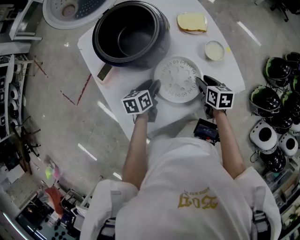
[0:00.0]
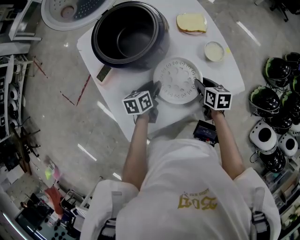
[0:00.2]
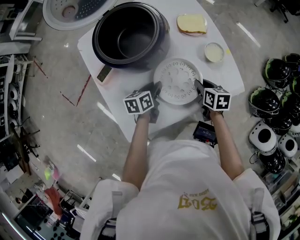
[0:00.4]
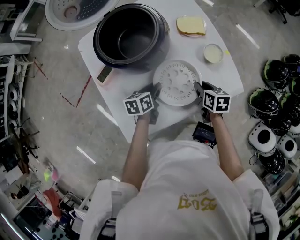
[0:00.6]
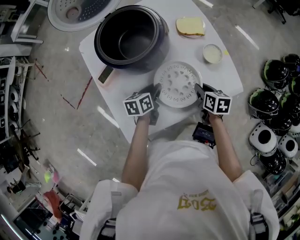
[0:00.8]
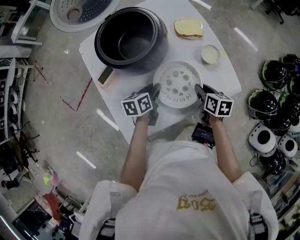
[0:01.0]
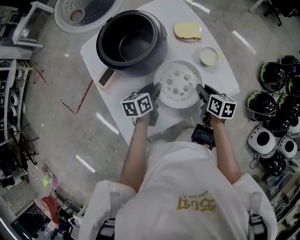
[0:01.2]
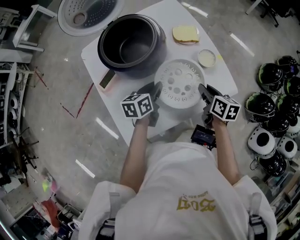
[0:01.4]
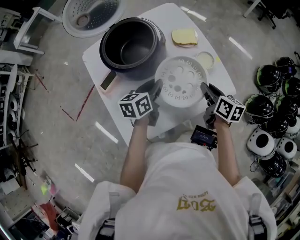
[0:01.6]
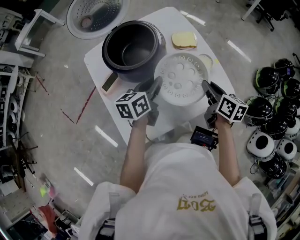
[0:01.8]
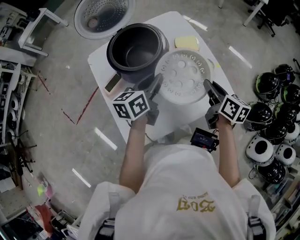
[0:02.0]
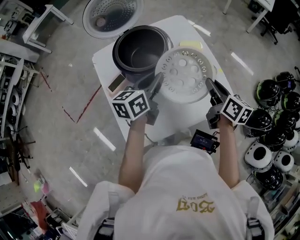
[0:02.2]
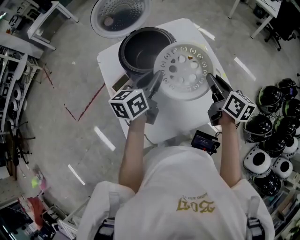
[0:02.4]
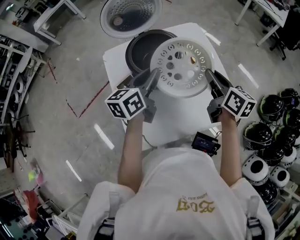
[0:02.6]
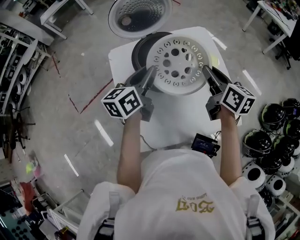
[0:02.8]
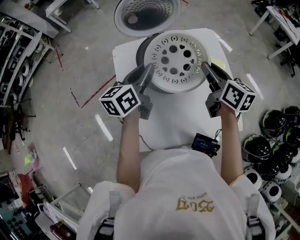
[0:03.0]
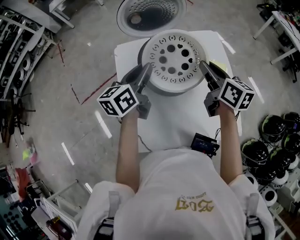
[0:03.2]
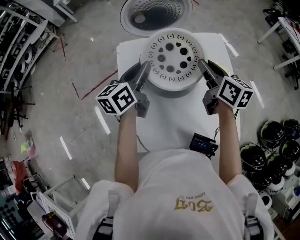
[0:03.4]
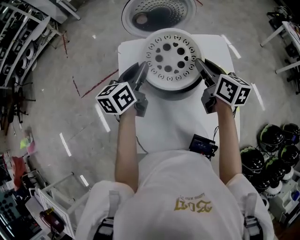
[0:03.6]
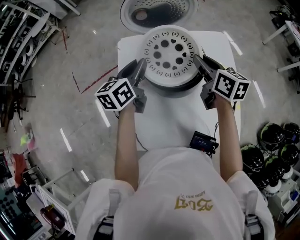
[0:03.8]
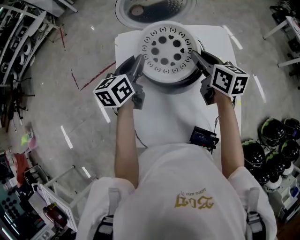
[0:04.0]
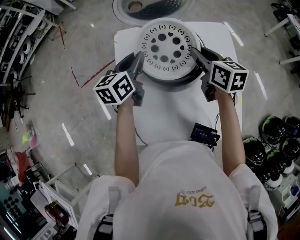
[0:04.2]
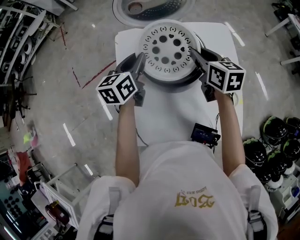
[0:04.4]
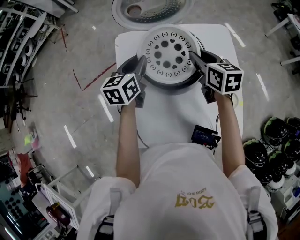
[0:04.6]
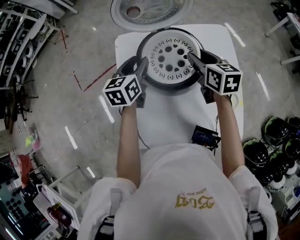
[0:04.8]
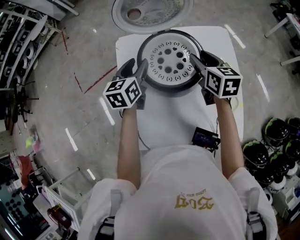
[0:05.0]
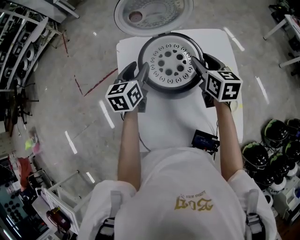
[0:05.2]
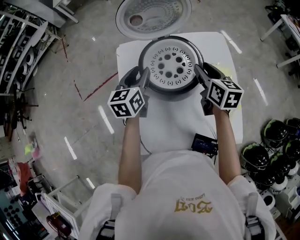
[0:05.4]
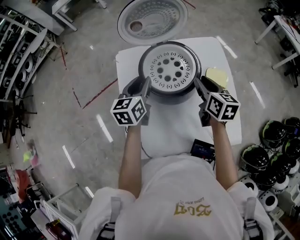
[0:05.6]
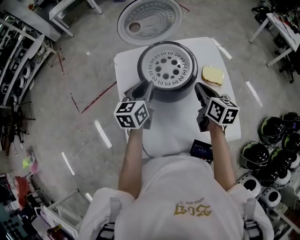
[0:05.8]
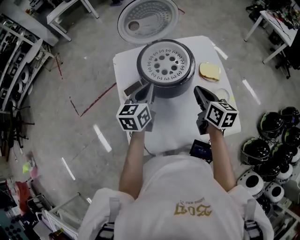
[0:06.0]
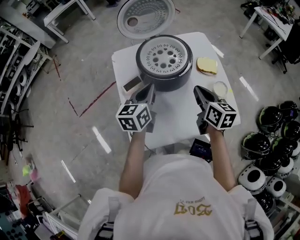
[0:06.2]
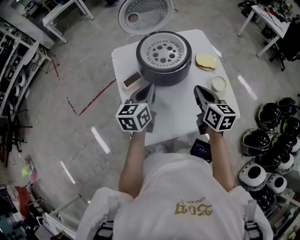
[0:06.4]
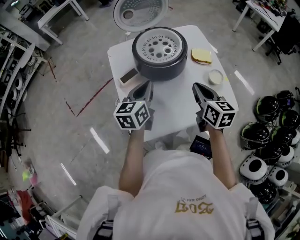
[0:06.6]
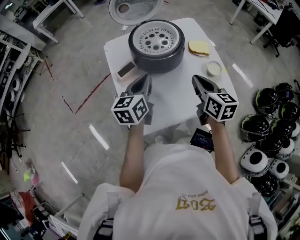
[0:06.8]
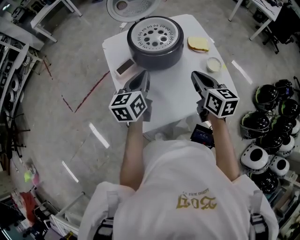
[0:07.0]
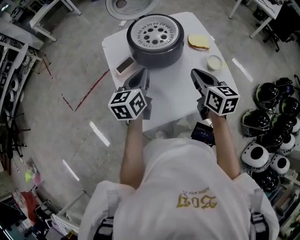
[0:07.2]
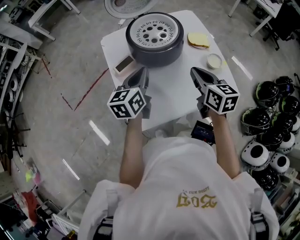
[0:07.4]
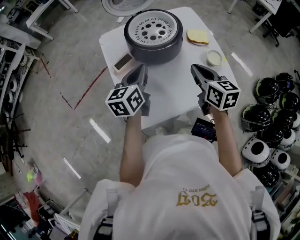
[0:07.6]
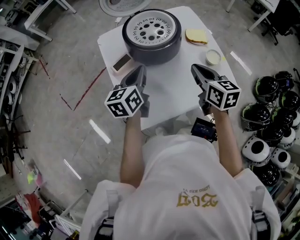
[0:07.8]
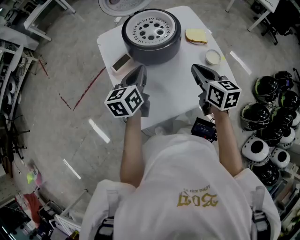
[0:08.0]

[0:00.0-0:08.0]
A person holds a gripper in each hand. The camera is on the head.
0:00.0 to 0:01.6: The grippers both shift upward by about 10 cm. The right gripper changes its angle by roughly 20 degrees. Meanwhile the left gripper closes.
0:01.6 to 0:03.2: The left gripper shifts some 20 cm upward, to the left and forward, and turns by approximately 30 degrees; the right gripper moves forward, upward and to the left, about 25 cm, and changes its angle by approximately 30 degrees.
0:03.2 to 0:04.8: The right gripper moves forward and downward, some 10 cm, changes its angle by approximately 20 degrees, and opens, while the left gripper is displaced downward and forward by roughly 10 cm, rotates about 20 degrees, and opens.
0:04.8 to 0:06.4: The grippers both shift backward by some 20 cm. The left gripper closes. The right gripper closes.
0:06.4 to 0:08.0: The grippers make only small movements.

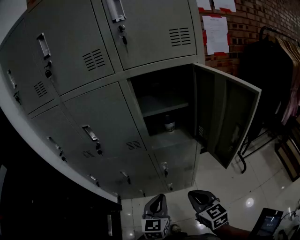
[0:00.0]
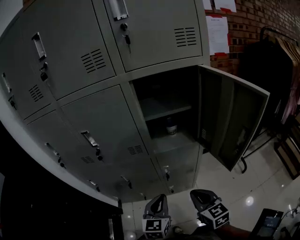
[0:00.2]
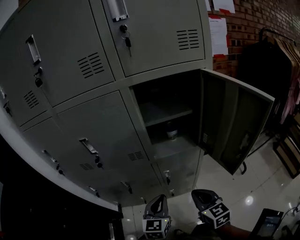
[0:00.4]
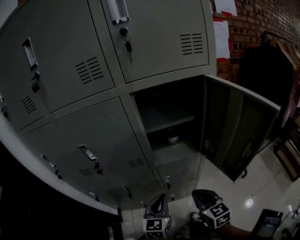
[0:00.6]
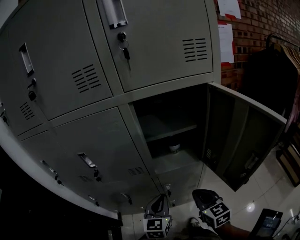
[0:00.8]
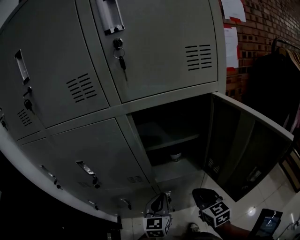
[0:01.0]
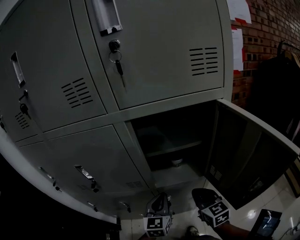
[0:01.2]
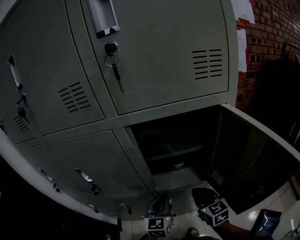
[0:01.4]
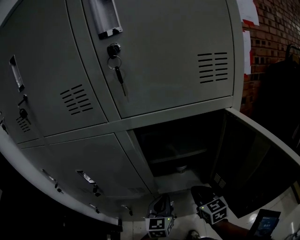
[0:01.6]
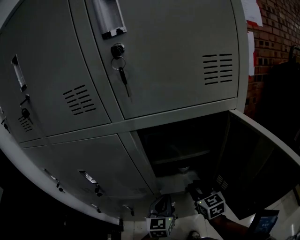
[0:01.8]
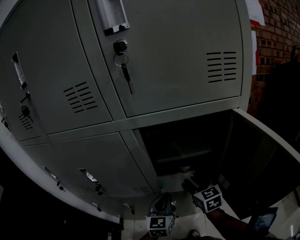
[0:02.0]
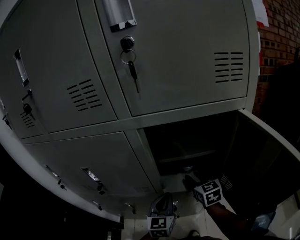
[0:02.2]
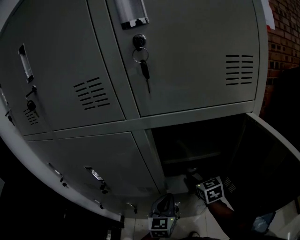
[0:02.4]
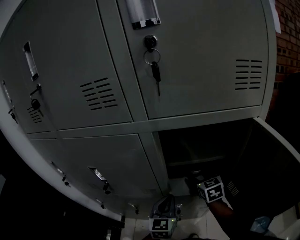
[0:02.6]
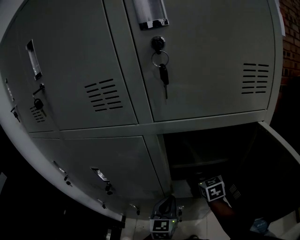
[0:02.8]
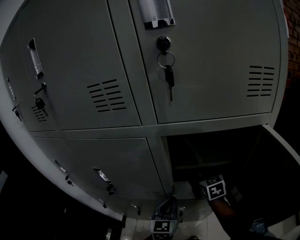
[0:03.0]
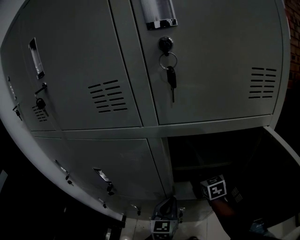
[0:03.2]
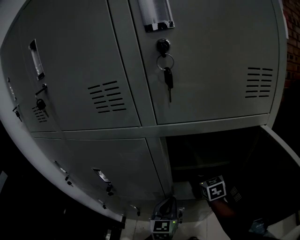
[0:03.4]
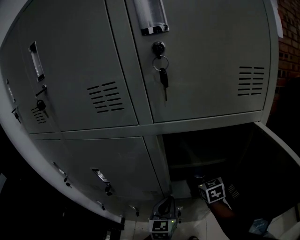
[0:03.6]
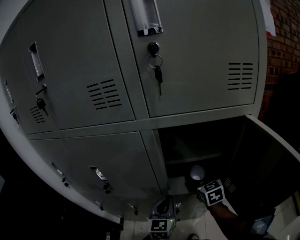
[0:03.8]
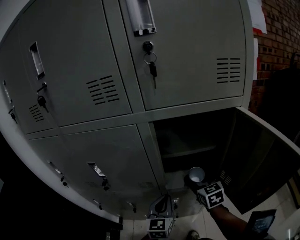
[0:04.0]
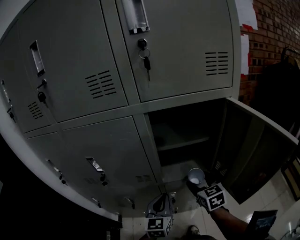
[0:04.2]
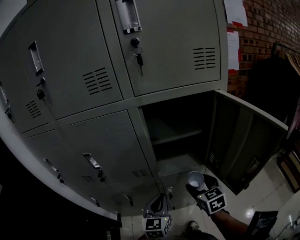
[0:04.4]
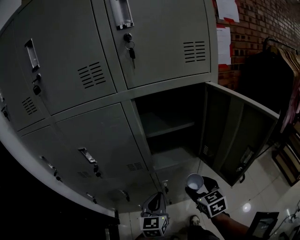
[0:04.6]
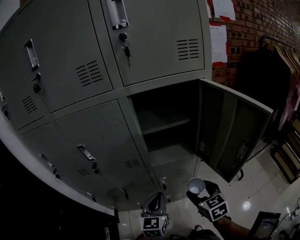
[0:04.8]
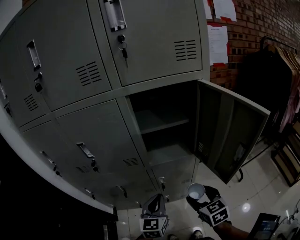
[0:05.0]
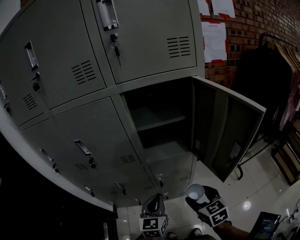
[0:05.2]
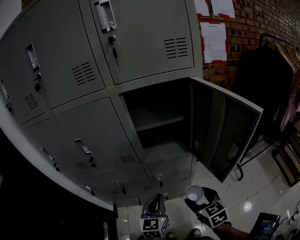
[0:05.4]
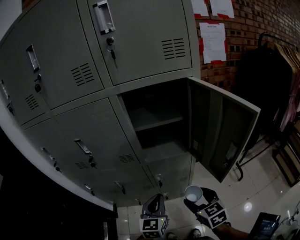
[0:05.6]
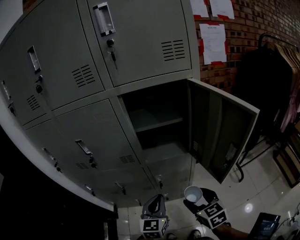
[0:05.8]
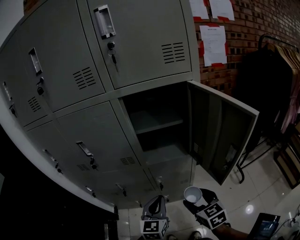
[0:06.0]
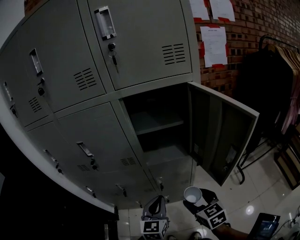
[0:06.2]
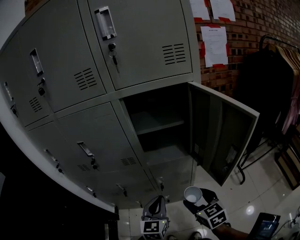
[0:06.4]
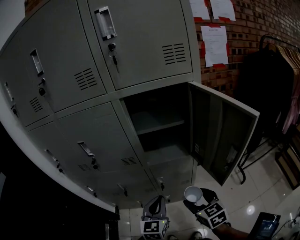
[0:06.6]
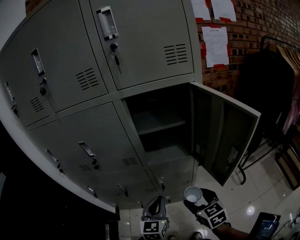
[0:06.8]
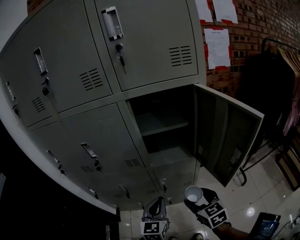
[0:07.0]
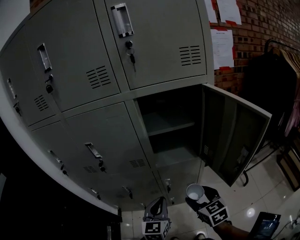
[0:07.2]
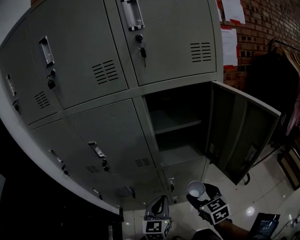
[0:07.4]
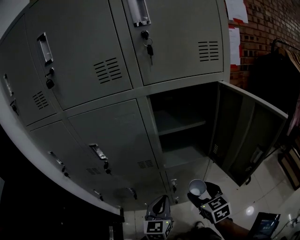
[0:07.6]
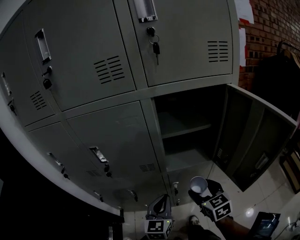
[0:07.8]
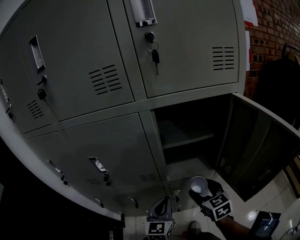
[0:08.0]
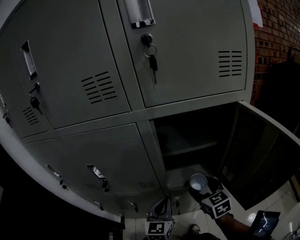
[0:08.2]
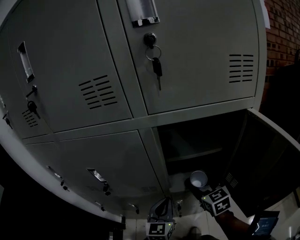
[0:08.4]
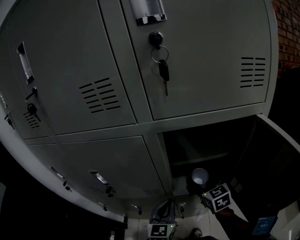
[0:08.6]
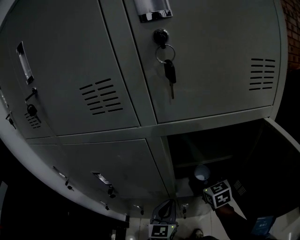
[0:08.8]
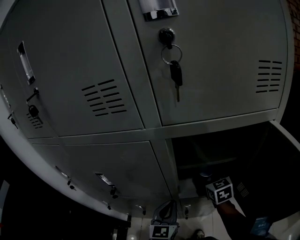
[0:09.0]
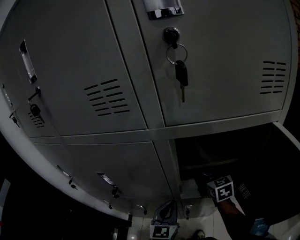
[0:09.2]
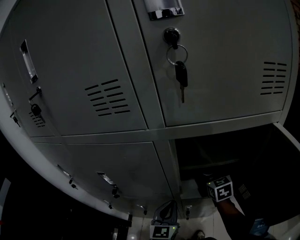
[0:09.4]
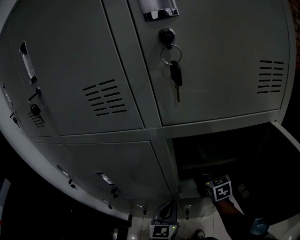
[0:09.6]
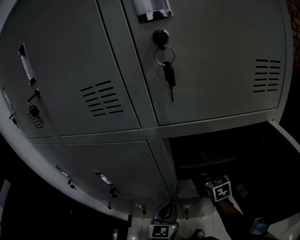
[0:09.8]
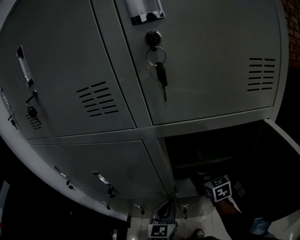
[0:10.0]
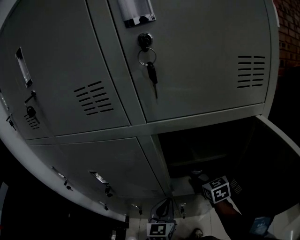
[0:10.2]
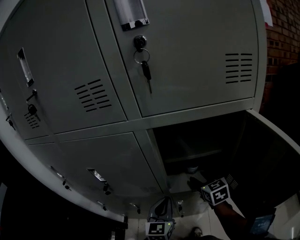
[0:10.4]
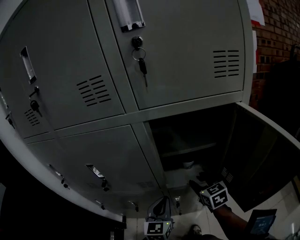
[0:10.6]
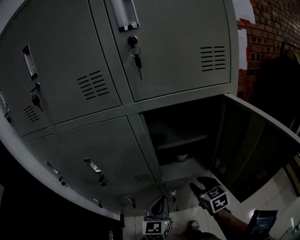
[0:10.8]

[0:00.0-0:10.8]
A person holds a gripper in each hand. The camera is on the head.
0:00.0 to 0:01.6: Both grippers move forward, about 25 cm.
0:01.6 to 0:03.0: The right gripper heads forward, covering approximately 15 cm, and opens up; the left gripper changes place by about 5 cm.
0:03.0 to 0:04.6: The left gripper travels backward by about 15 cm, while the right gripper heads backward, covering roughly 30 cm.
0:04.6 to 0:06.2: Both grippers travel together backward, some 10 cm.
0:06.2 to 0:07.8: The grippers both shift forward and to the left by roughly 10 cm.
0:07.8 to 0:09.2: The left gripper goes some 15 cm forward, while the right gripper heads forward, covering roughly 25 cm.
0:09.2 to 0:10.8: The left gripper heads backward, covering some 10 cm. Meanwhile the right gripper goes roughly 20 cm backward, and closes up.

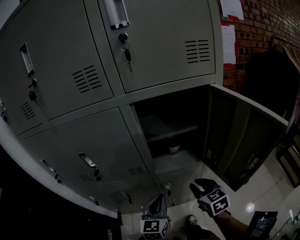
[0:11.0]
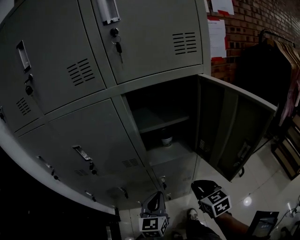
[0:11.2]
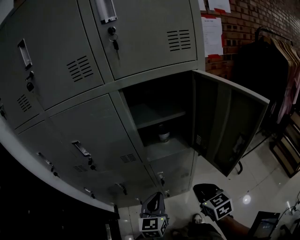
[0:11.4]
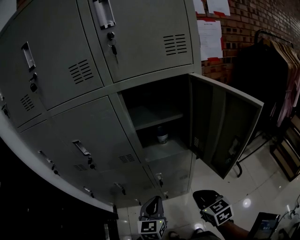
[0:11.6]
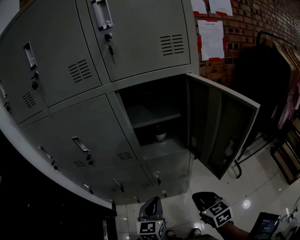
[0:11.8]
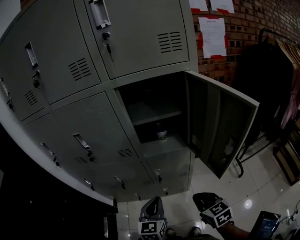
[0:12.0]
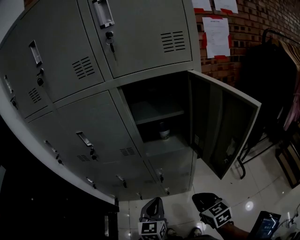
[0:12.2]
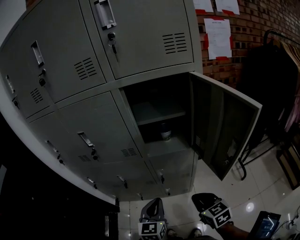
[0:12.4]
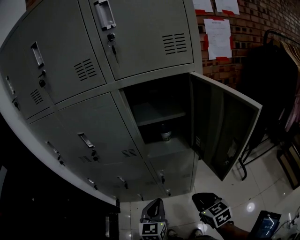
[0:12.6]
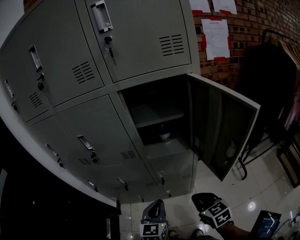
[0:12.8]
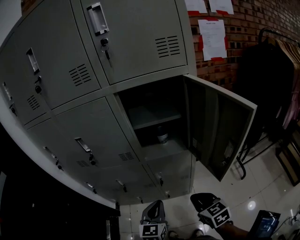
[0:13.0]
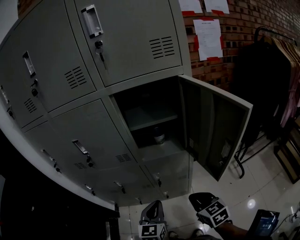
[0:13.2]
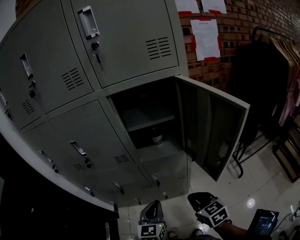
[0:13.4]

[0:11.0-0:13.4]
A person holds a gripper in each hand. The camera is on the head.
0:11.0 to 0:12.2: Both grippers travel together backward, approximately 15 cm.
0:12.2 to 0:13.4: The grippers move only a little.

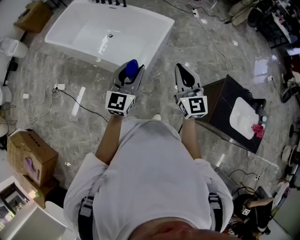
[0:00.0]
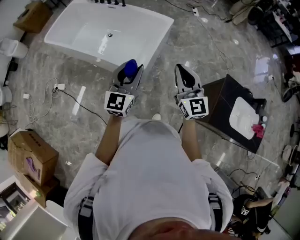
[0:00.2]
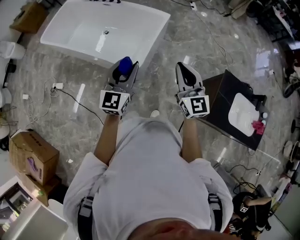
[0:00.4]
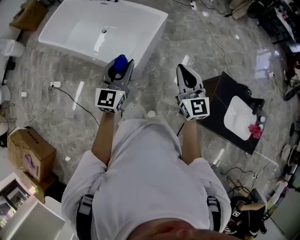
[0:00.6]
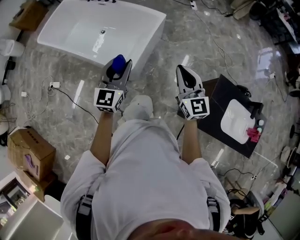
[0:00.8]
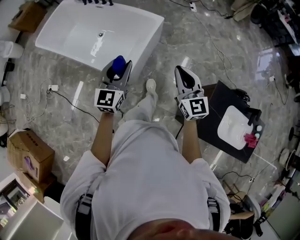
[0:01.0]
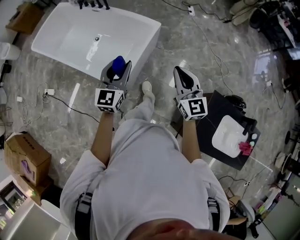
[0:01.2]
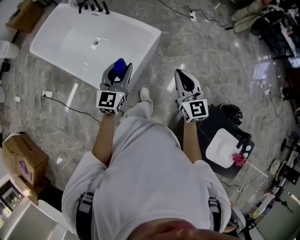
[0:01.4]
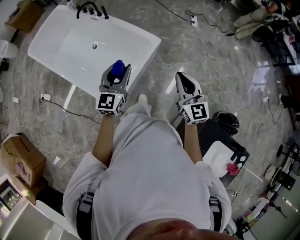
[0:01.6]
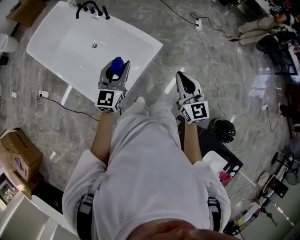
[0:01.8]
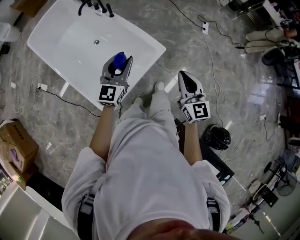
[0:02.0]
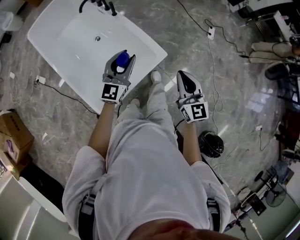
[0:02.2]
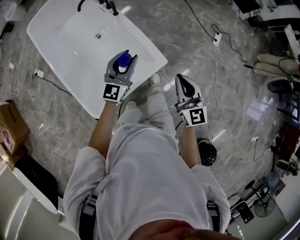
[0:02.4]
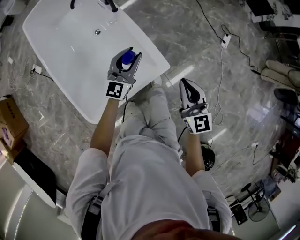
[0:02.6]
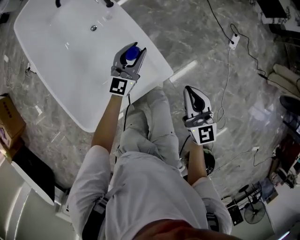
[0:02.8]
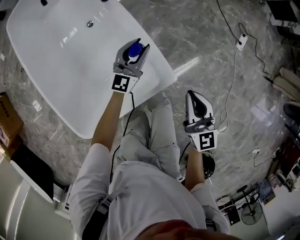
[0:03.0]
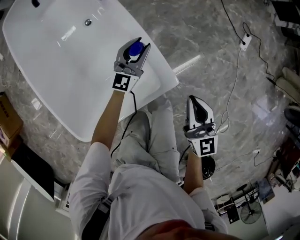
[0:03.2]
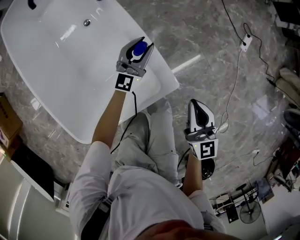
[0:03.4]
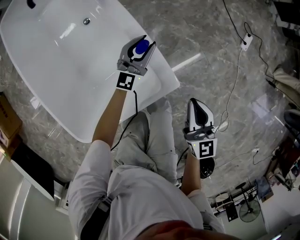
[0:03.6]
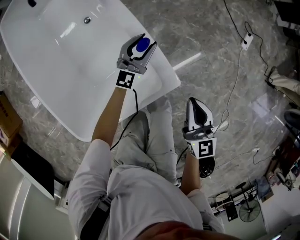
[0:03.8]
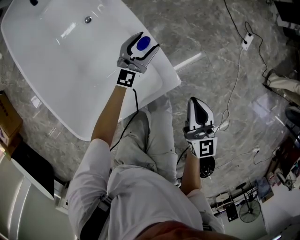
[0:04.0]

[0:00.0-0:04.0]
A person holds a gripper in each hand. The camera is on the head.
0:00.0 to 0:01.4: The two grippers go roughly 30 cm forward and to the right.
0:01.4 to 0:02.6: The pair of grippers is taken forward, some 50 cm. The right gripper changes its angle by approximately 20 degrees. The left gripper goes roughly 20 cm downward.
0:02.6 to 0:04.0: The left gripper shifts about 30 cm downward and forward, and opens up. The right gripper is displaced downward by approximately 20 cm.
